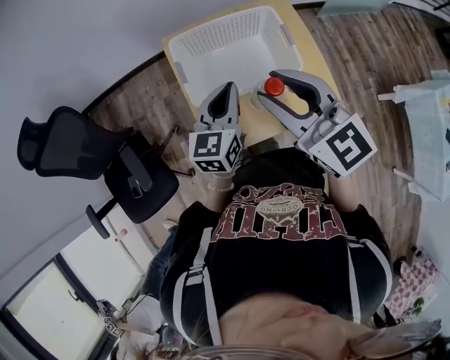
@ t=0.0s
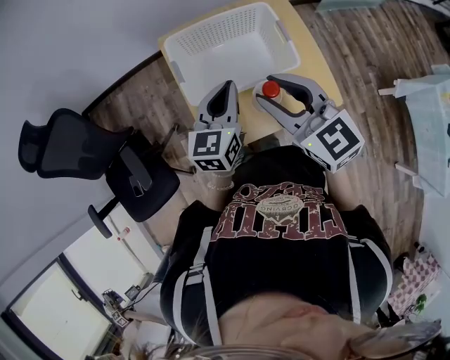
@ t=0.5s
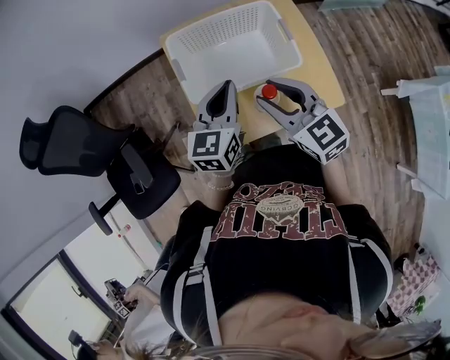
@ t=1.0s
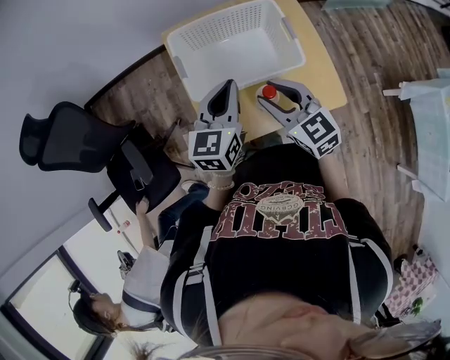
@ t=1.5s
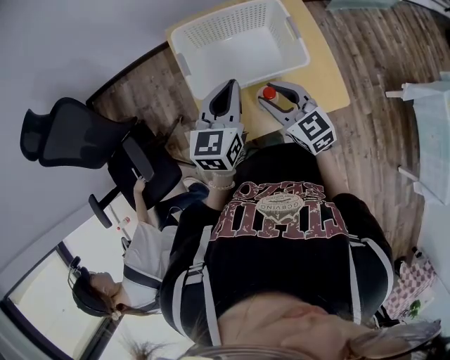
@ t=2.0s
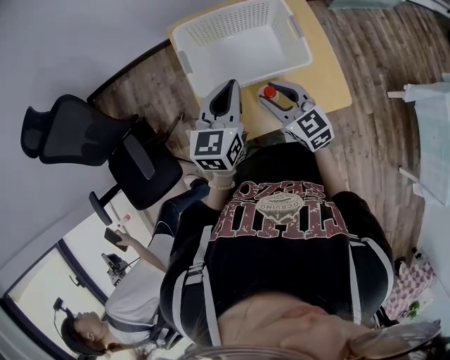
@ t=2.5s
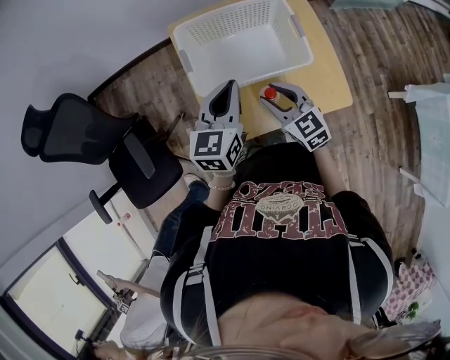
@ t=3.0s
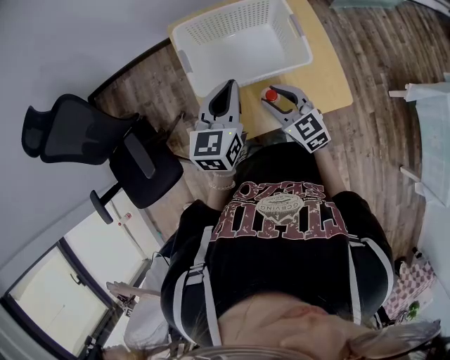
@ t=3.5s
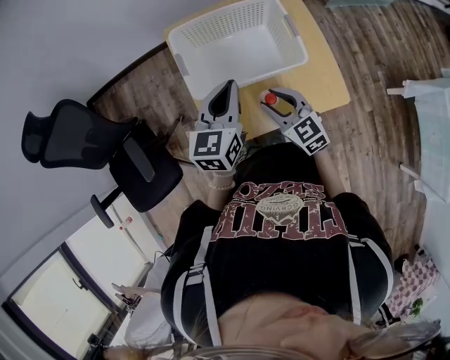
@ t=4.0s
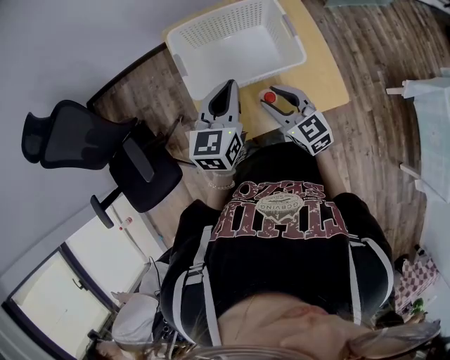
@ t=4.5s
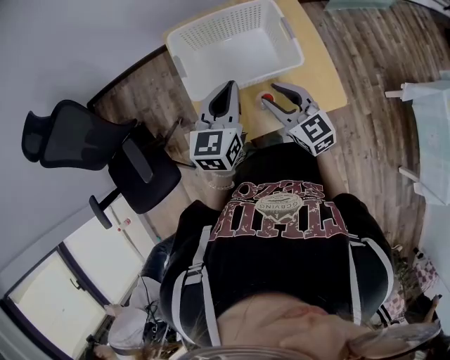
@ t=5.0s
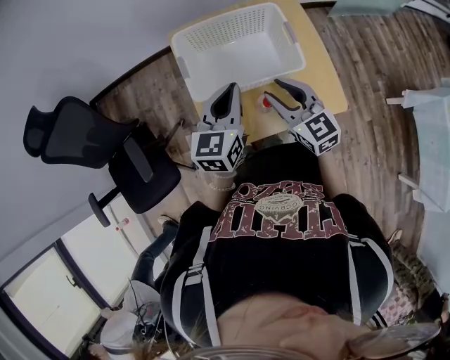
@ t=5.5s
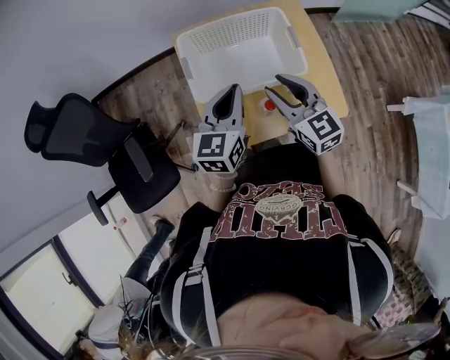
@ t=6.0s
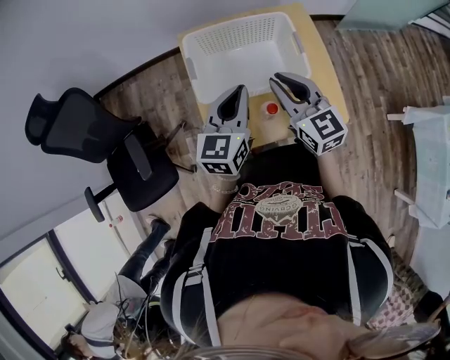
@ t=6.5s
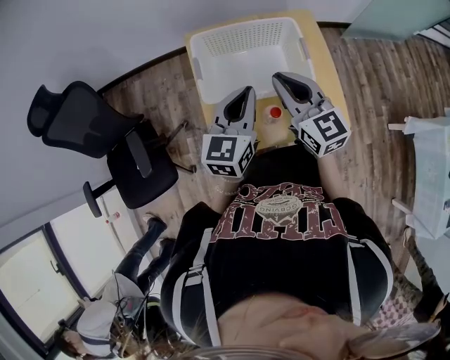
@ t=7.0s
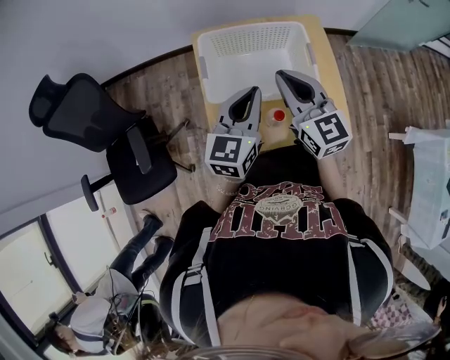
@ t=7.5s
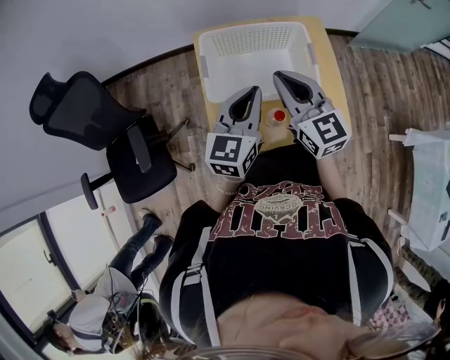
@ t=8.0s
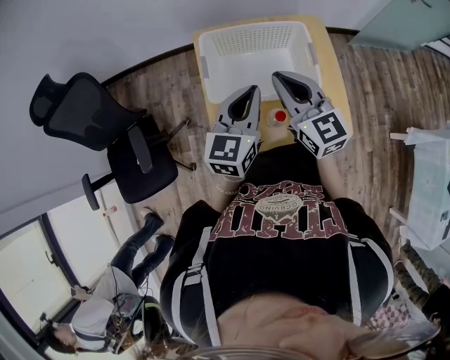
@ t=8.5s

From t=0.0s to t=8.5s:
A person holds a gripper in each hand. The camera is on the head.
From t=0.0s to t=2.0s: The right gripper goes about 20 cm downward.
From t=2.0s to t=4.0s: The right gripper moves downward, approximately 5 cm.
From t=4.0s to t=6.5s: The right gripper is displaced upward by about 15 cm, and closes.
From t=6.5s to t=8.5s: The grippers make only small movements.

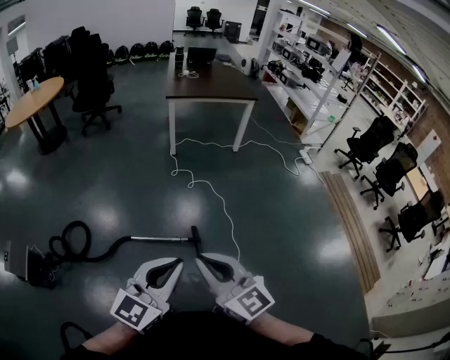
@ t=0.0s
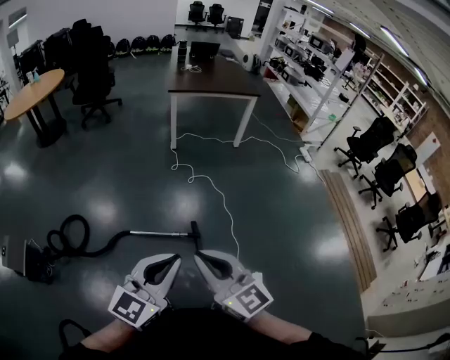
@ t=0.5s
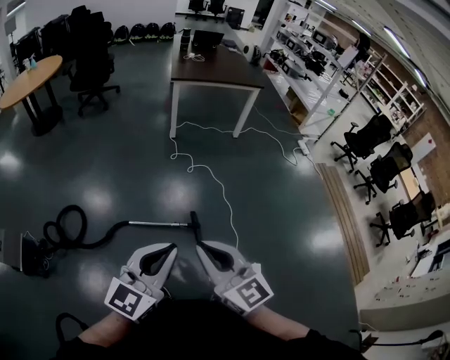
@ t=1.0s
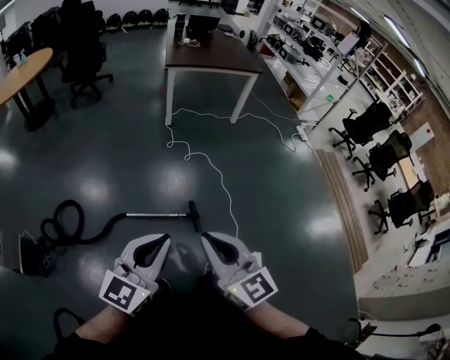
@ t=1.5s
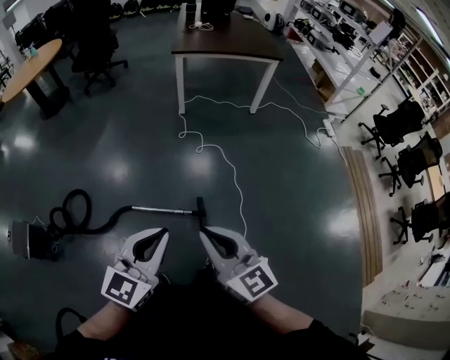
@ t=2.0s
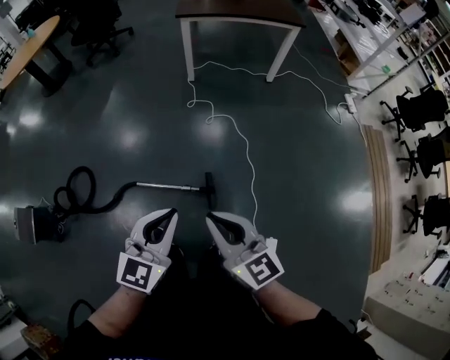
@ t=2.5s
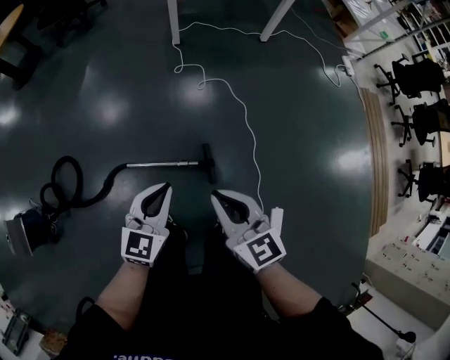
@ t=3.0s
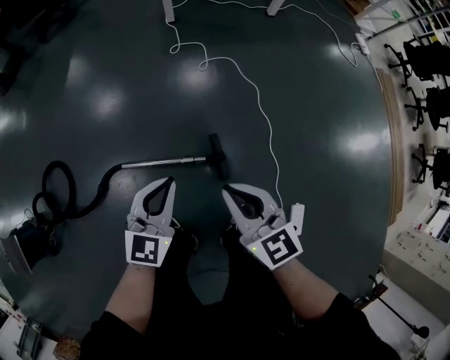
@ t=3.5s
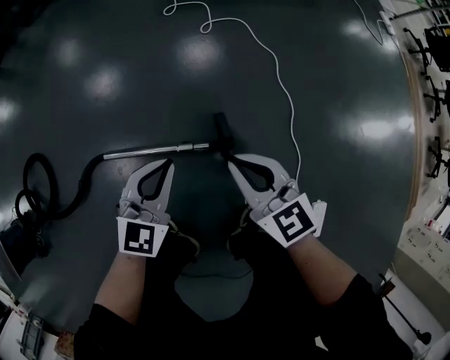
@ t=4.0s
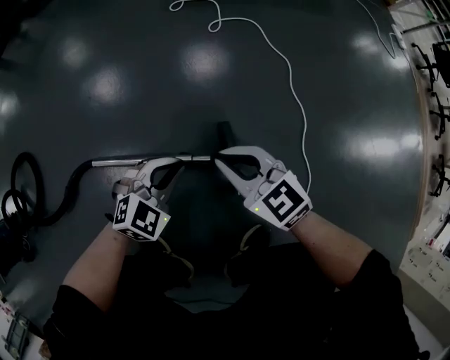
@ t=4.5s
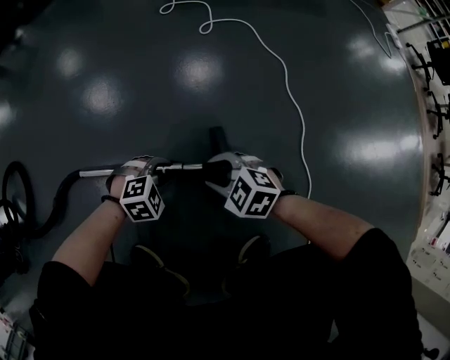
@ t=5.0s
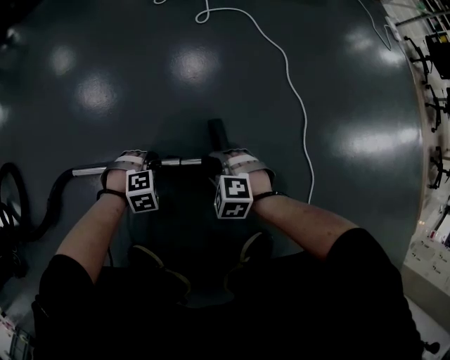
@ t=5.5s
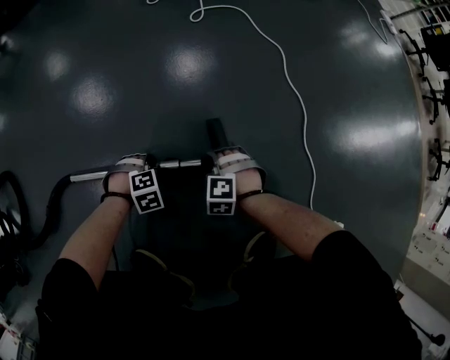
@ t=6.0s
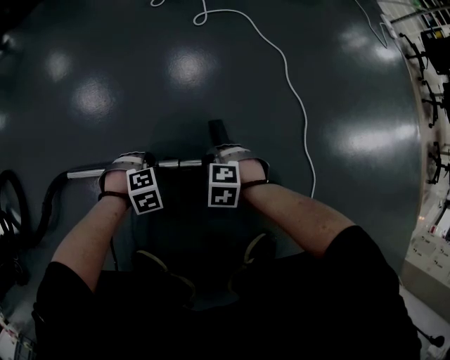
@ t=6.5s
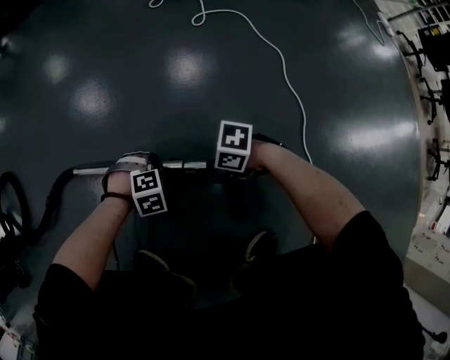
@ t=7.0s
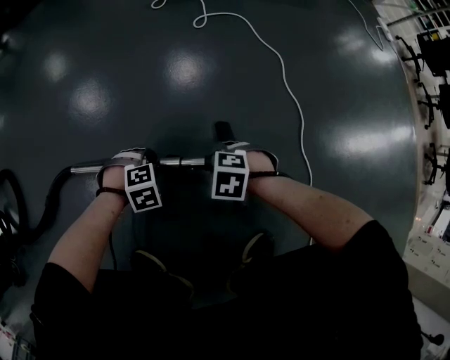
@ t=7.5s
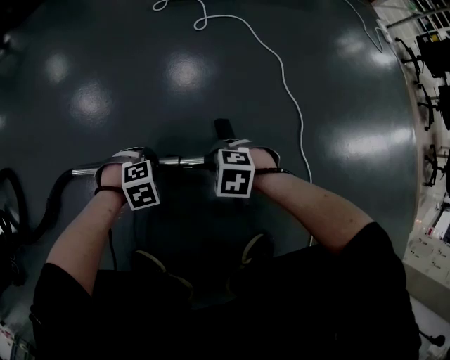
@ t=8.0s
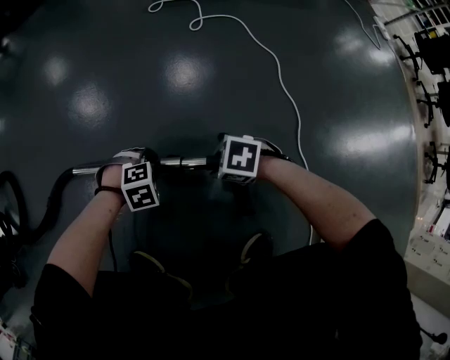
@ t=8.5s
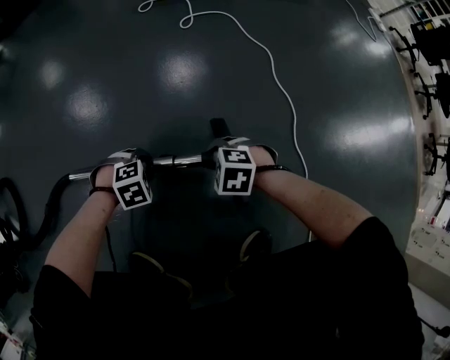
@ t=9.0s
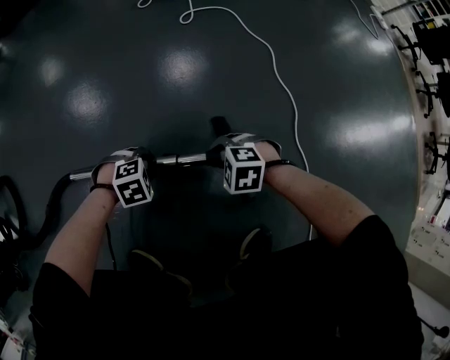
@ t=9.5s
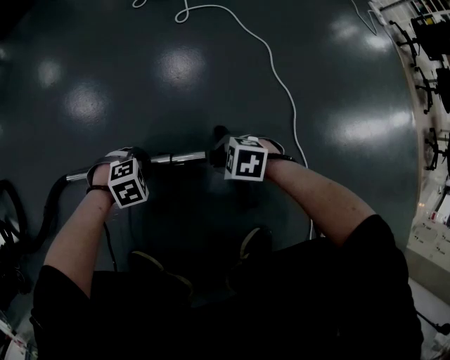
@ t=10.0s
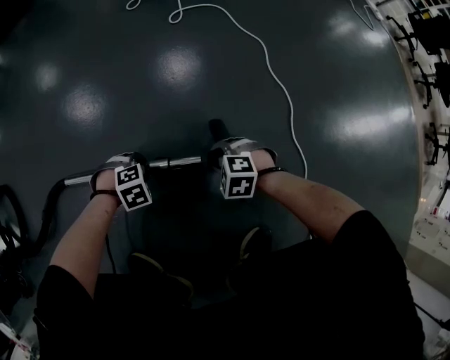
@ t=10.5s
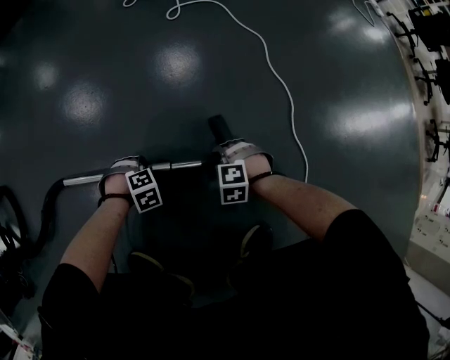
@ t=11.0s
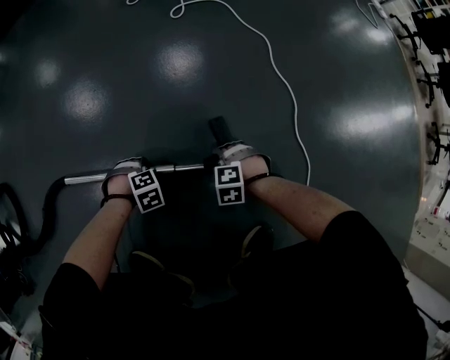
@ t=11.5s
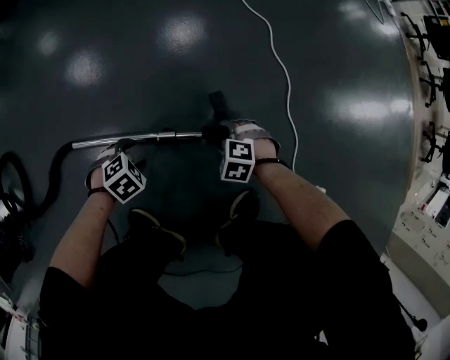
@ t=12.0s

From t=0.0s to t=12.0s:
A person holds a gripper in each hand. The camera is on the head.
From t=0.0s to t=2.0s: Both grippers move forward and downward, some 15 cm.
From t=2.0s to t=4.0s: Both grippers travel together downward, some 60 cm. The left gripper rotates roughly 20 degrees. The right gripper rotates some 20 degrees.
From t=4.0s to t=6.0s: The grippers both shift downward by some 40 cm. The right gripper points its fingers some 50 degrees further downward, and opens up. The left gripper angles its fingers downward, by some 60 degrees, and opens.
From t=6.0s to t=8.0s: The grippers both shift upward by approximately 5 cm. The right gripper rotates approximately 30 degrees.
From t=10.0s to t=12.0s: The right gripper moves roughly 10 cm downward and comes back, and opens up, while the left gripper heads upward, covering roughly 5 cm.

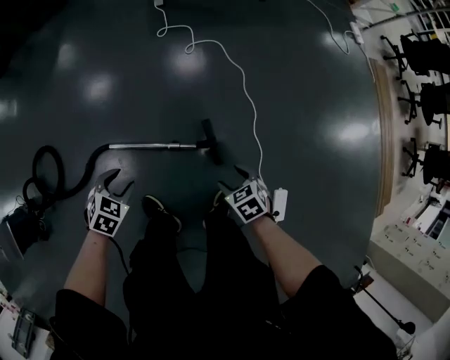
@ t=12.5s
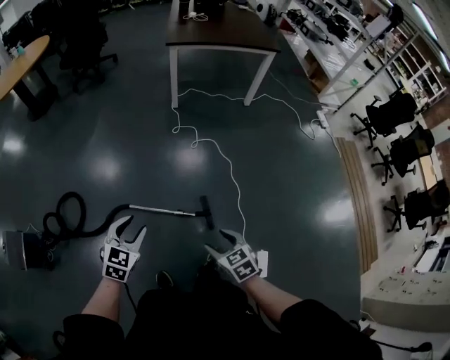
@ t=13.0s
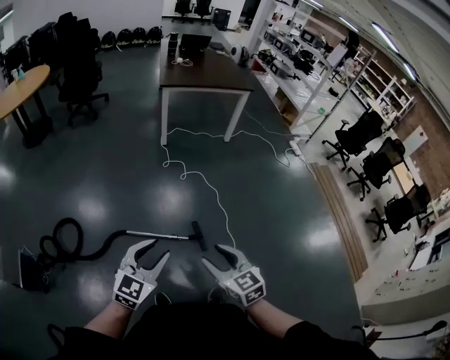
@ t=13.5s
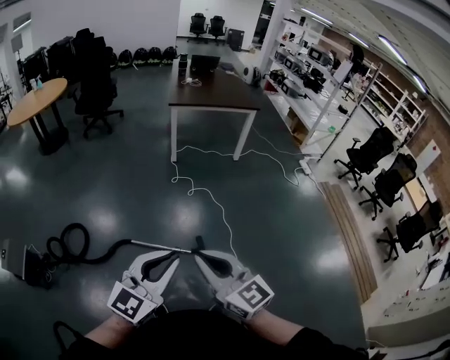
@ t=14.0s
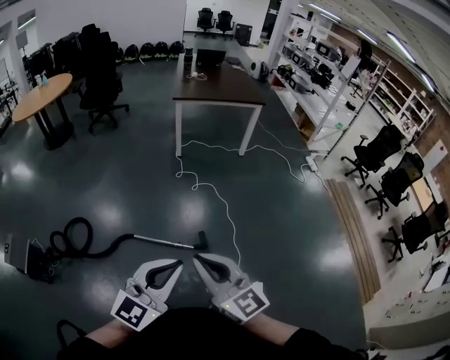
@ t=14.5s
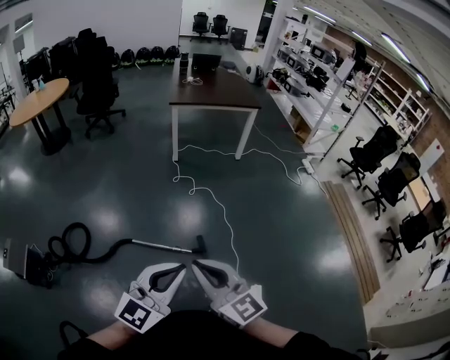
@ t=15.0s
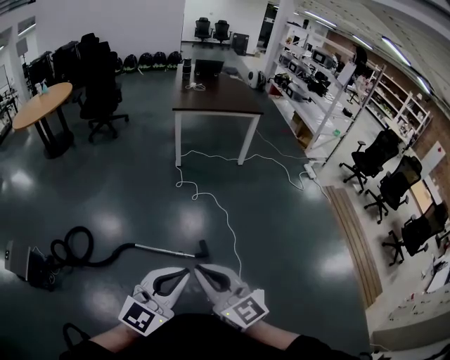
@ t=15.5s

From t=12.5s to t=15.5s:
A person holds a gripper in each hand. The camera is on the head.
From t=12.5s to t=14.0s: The right gripper goes roughly 60 cm upward, tilts its fingers some 60 degrees upward, and closes its fingers, while the left gripper goes roughly 60 cm upward and backward, tilts its fingers approximately 70 degrees upward, and closes up.
From t=14.0s to t=15.5s: There are only small adjustments of the grippers.

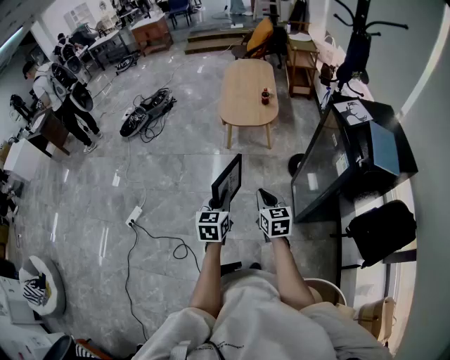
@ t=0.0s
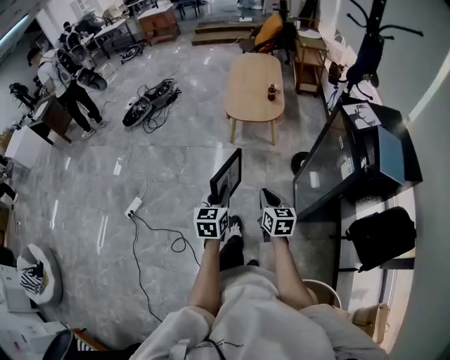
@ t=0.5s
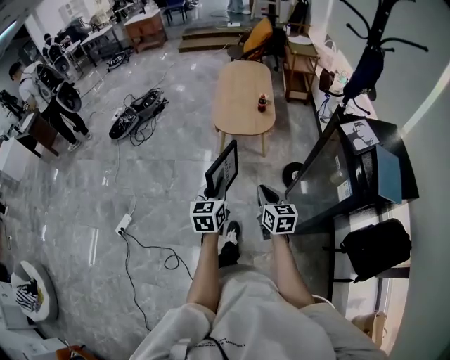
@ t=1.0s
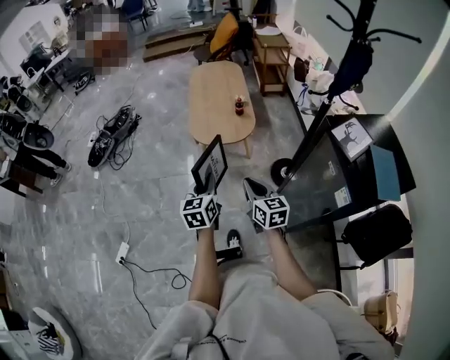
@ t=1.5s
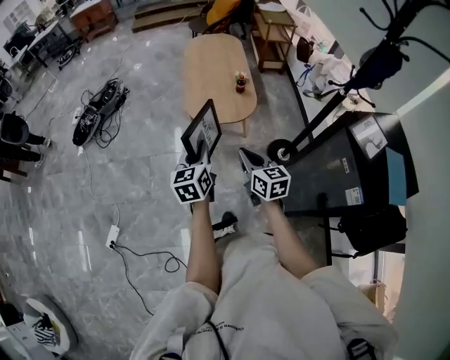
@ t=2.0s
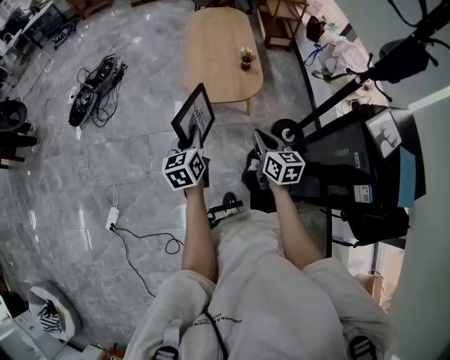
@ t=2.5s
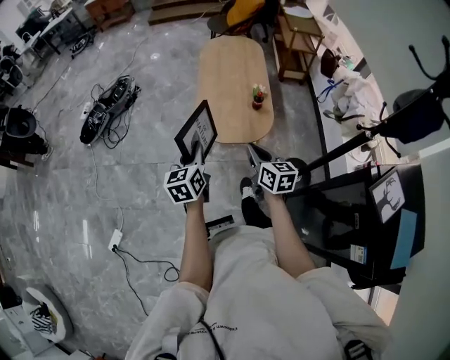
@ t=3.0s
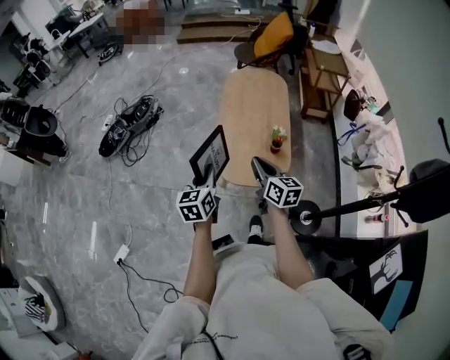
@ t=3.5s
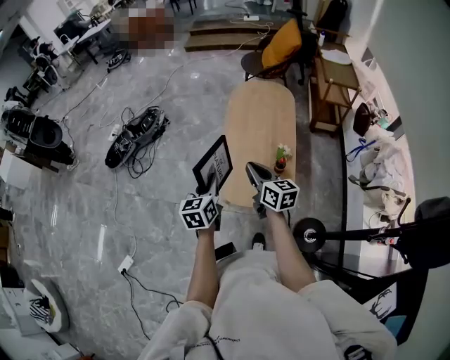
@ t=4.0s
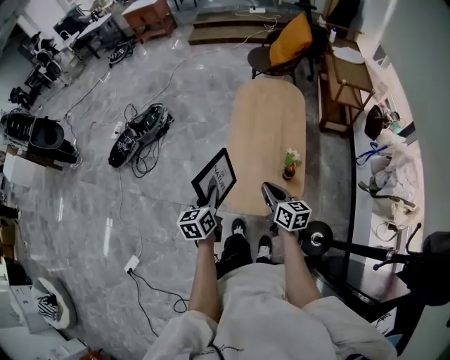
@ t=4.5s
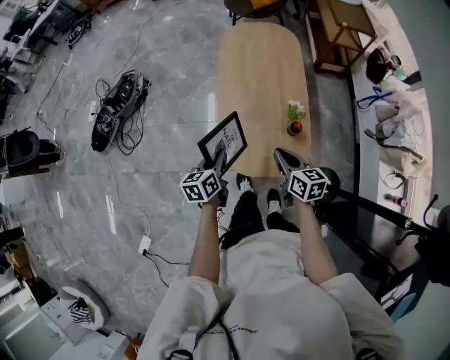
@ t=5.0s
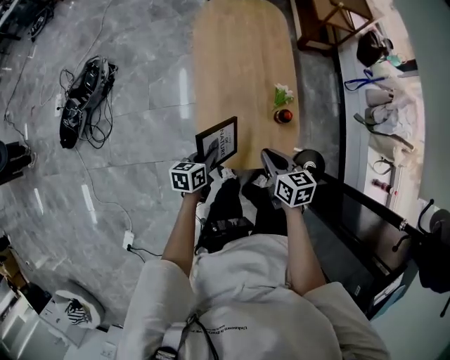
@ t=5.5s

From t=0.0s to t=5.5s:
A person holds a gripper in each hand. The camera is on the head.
From t=0.0s to t=2.0s: The grippers both shift forward by about 40 cm.
From t=2.0s to t=3.5s: The grippers both shift forward by approximately 35 cm.
From t=3.5s to t=5.5s: The left gripper shifts roughly 30 cm downward, and swivels roughly 40 degrees. The right gripper changes place by roughly 30 cm, and turns by about 30 degrees.
